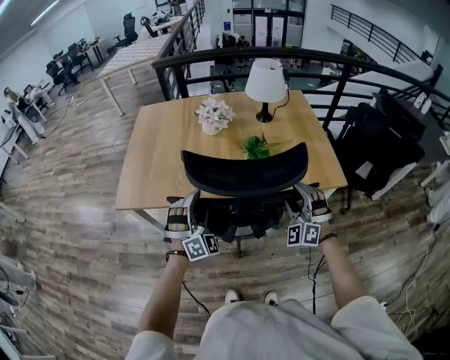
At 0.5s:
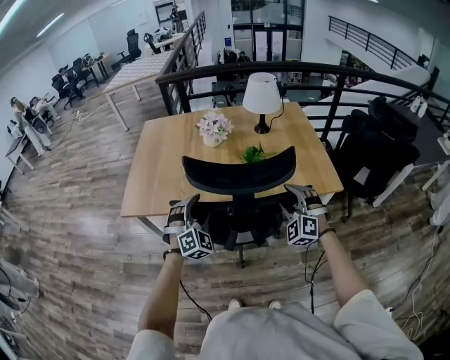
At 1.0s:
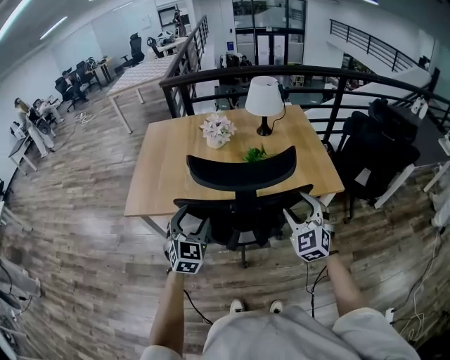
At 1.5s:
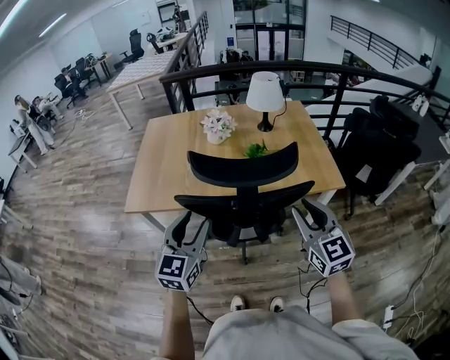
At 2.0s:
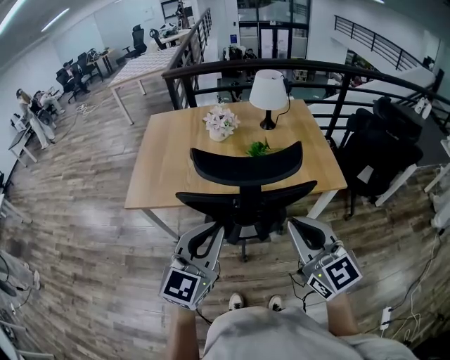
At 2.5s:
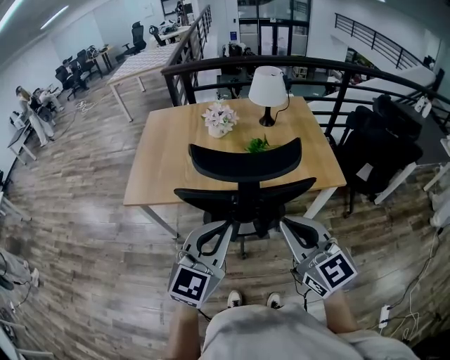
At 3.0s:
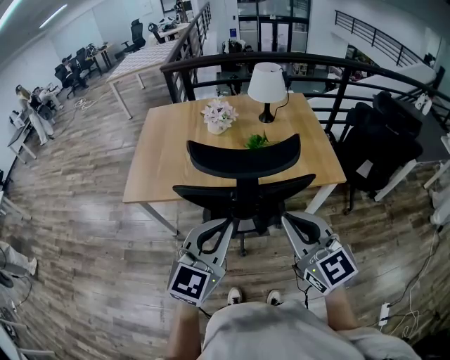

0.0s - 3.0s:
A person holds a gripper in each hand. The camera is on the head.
0.0s - 1.5s: The right gripper travels upward and backward by about 20 cm, twists some 60 degrees clockwise, seen from behind, and closes. The left gripper goes approximately 20 cm backward and upward, and twists some 60 degrees counterclockwise, seen from behind.
1.5s - 3.0s: The right gripper moves backward, to the left and upward, about 10 cm, and closes. Meanwhile the left gripper moves to the right and backward, approximately 10 cm, and closes its fingers.

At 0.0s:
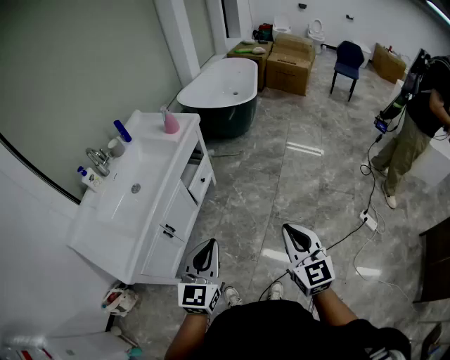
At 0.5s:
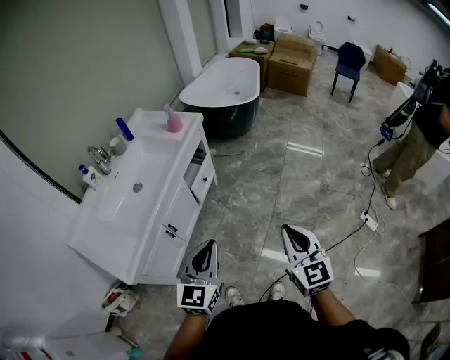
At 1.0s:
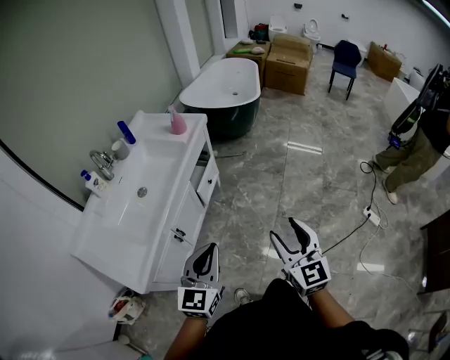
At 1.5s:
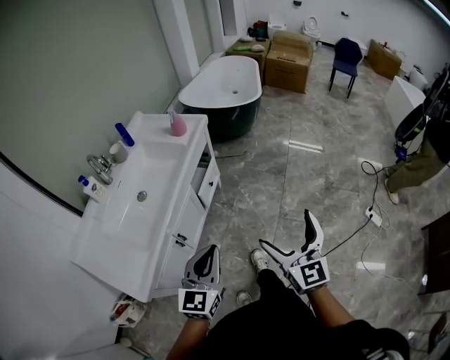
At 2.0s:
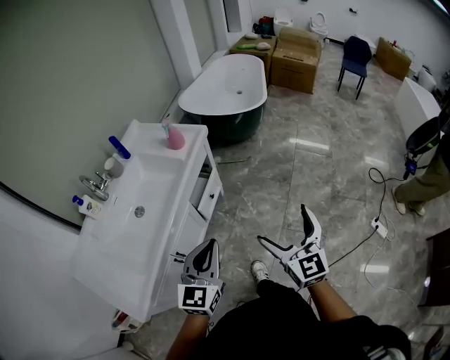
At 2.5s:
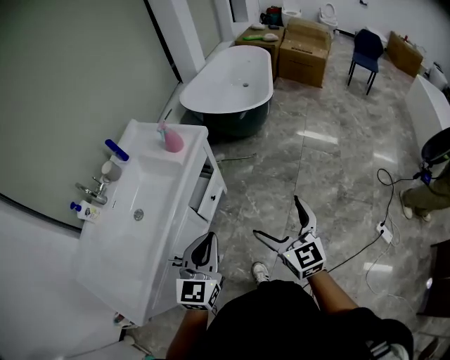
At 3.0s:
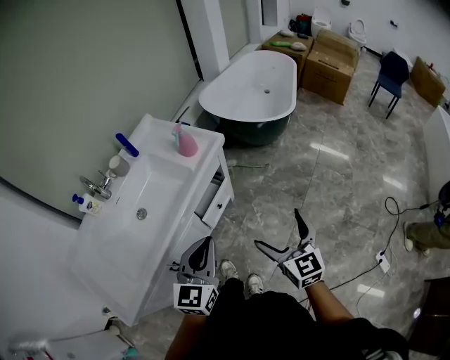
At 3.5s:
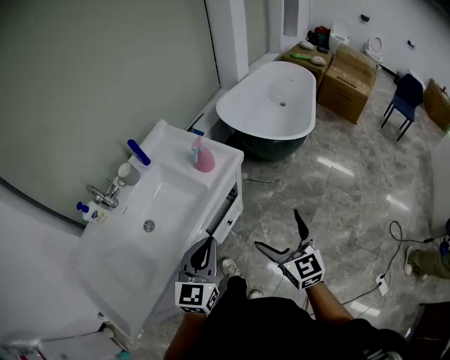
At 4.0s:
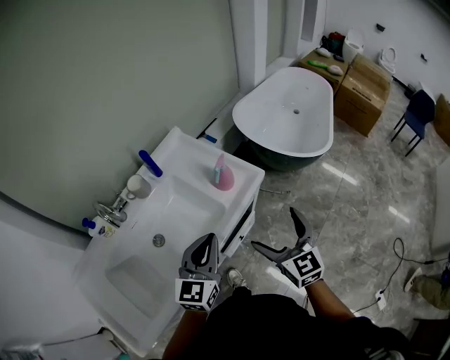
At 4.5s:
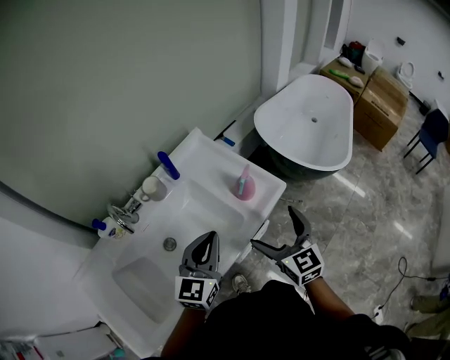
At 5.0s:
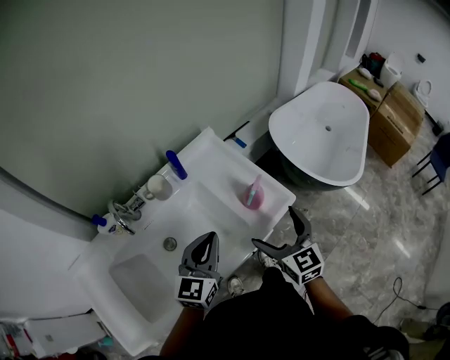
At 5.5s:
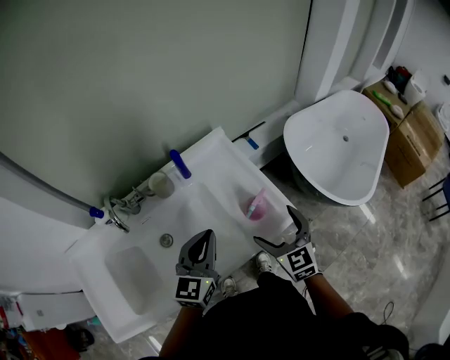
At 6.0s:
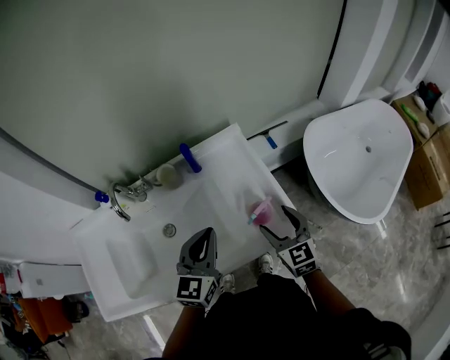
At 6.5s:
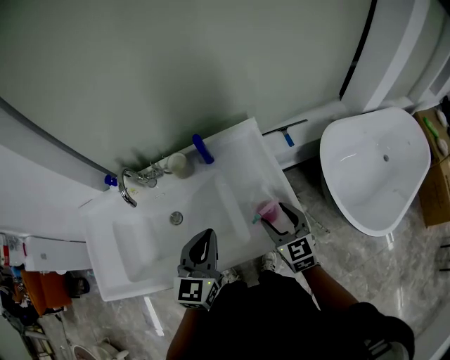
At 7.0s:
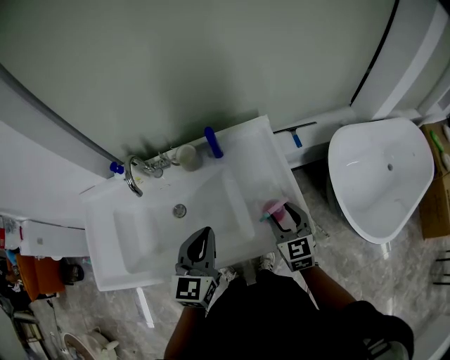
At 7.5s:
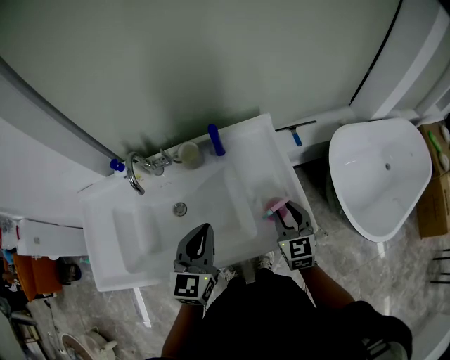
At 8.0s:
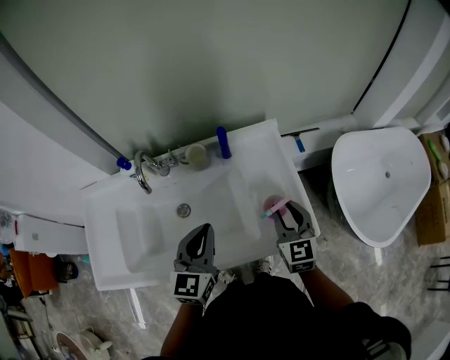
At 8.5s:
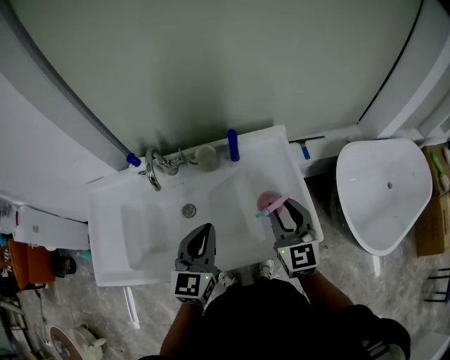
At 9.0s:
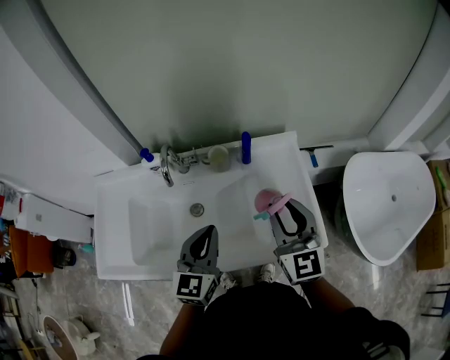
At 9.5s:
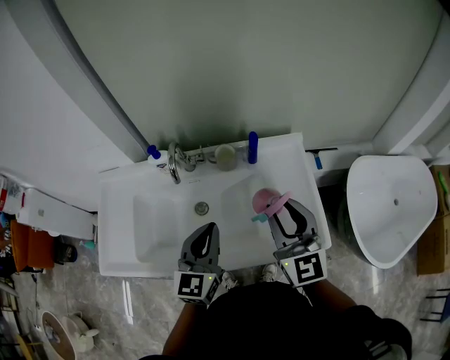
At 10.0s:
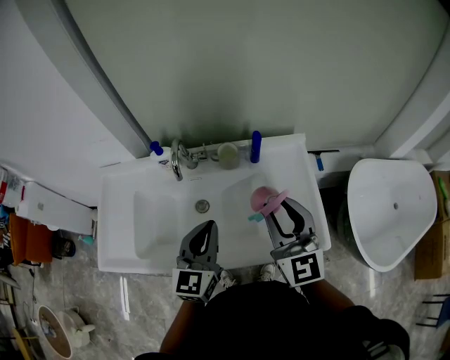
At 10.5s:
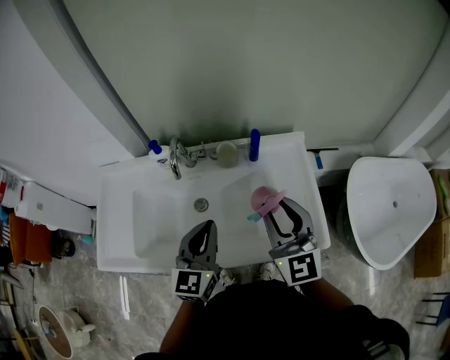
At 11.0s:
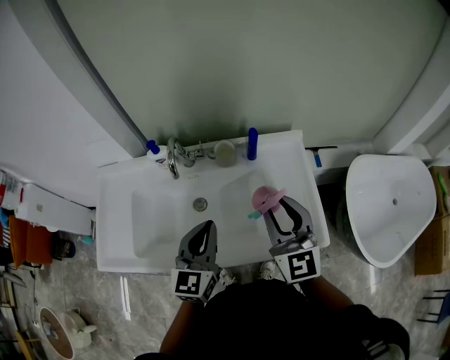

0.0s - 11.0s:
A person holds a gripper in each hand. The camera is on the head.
0.0s - 2.0s: The left gripper goes roughly 15 cm forward, while the right gripper heads forward and to the left, covering about 20 cm, and opens up.
2.0s - 3.5s: The two grippers go approximately 25 cm forward.
3.5s - 5.5s: The grippers both shift forward by about 30 cm. The right gripper turns by some 30 degrees. Meanwhile the left gripper turns by approximately 20 degrees.
5.5s - 7.5s: The left gripper changes its angle by about 20 degrees; the right gripper moves forward, roughly 10 cm, and closes up.
7.5s - 9.0s: The left gripper goes approximately 5 cm to the left. The right gripper shifts roughly 20 cm upward and to the left, and changes its angle by some 20 degrees.
9.0s - 11.0s: The grippers move only a little.

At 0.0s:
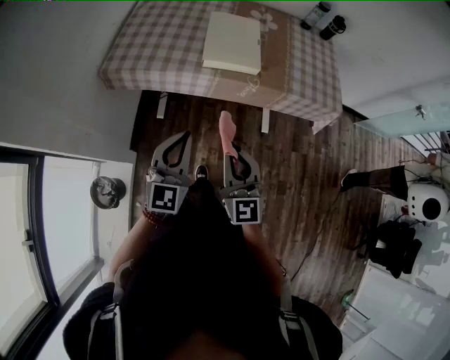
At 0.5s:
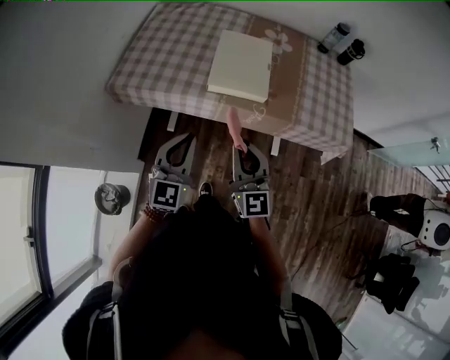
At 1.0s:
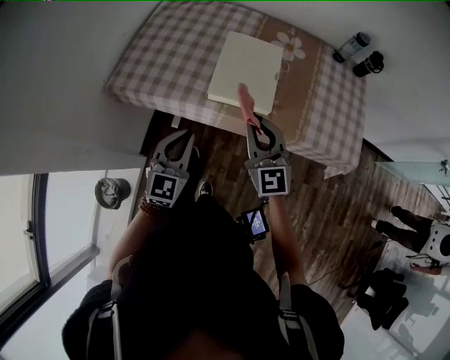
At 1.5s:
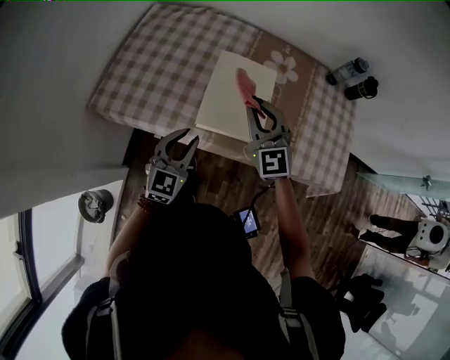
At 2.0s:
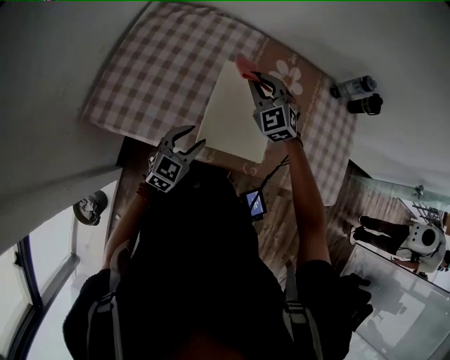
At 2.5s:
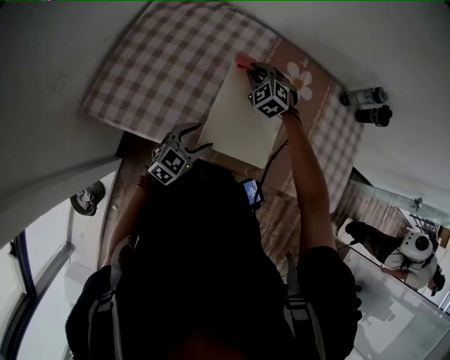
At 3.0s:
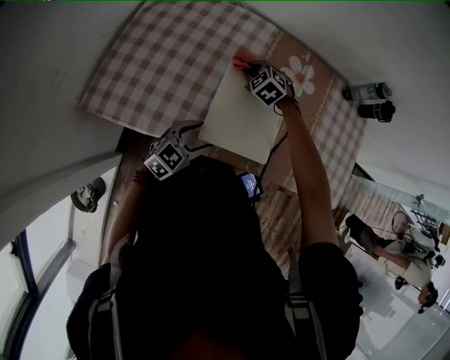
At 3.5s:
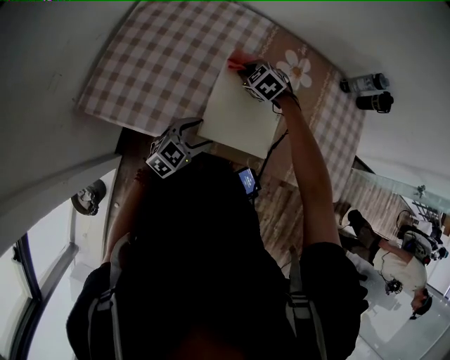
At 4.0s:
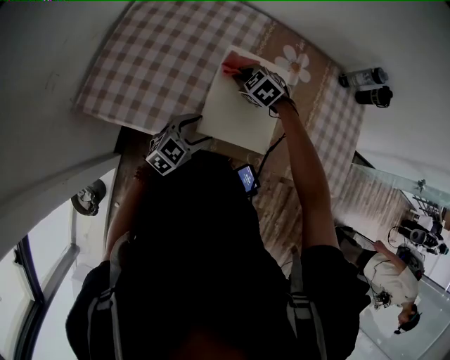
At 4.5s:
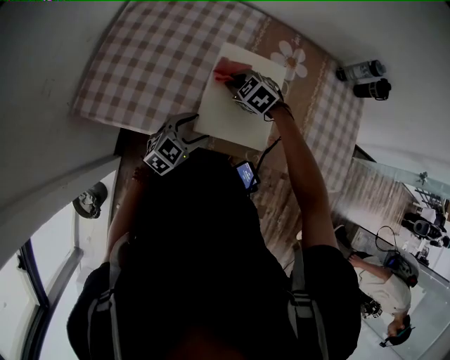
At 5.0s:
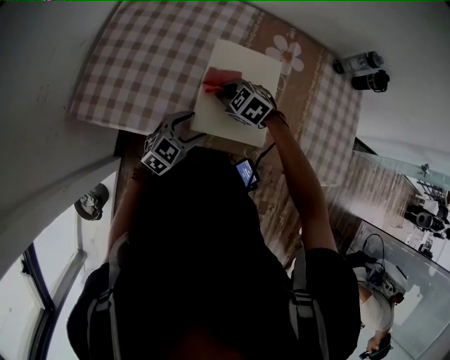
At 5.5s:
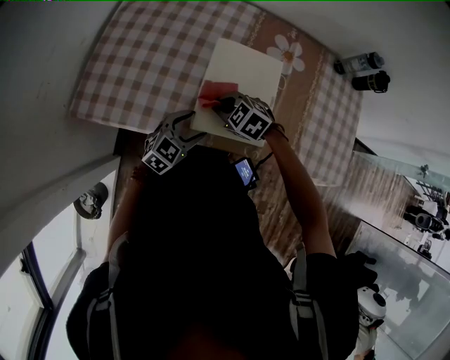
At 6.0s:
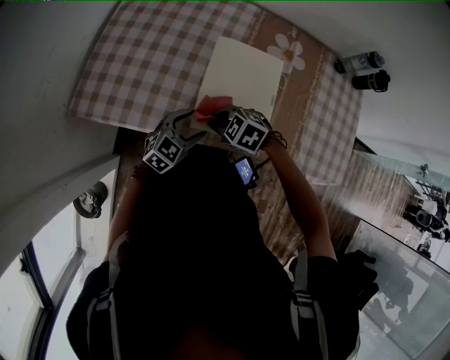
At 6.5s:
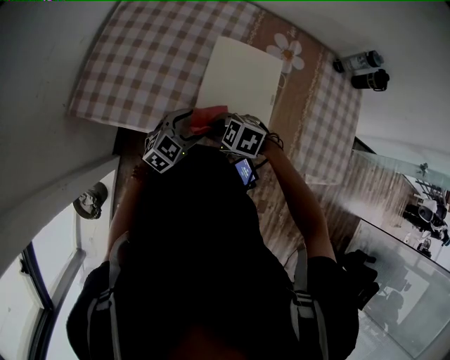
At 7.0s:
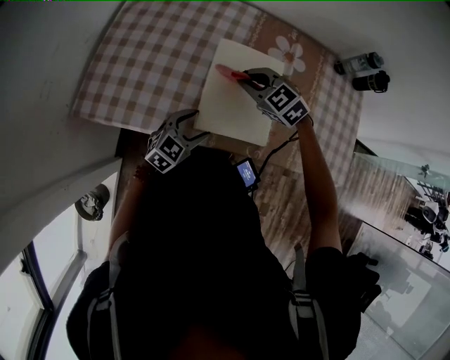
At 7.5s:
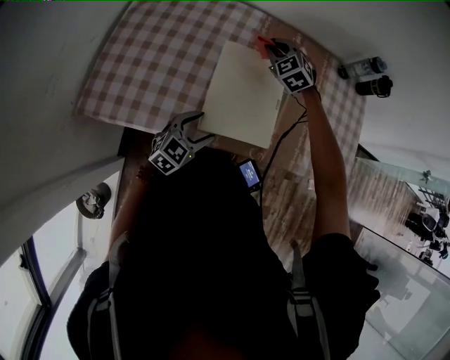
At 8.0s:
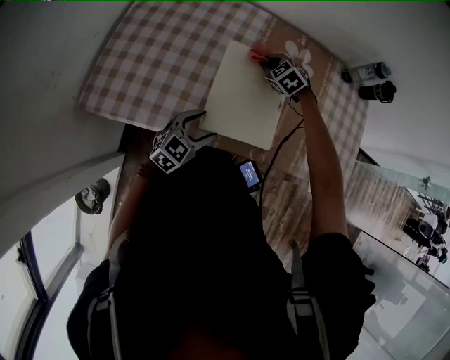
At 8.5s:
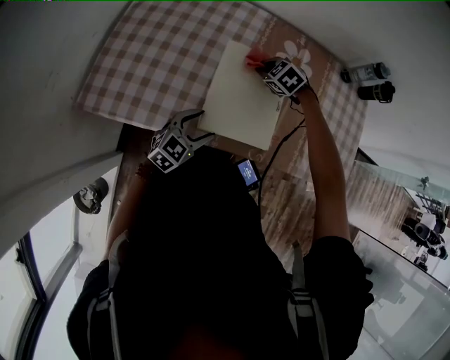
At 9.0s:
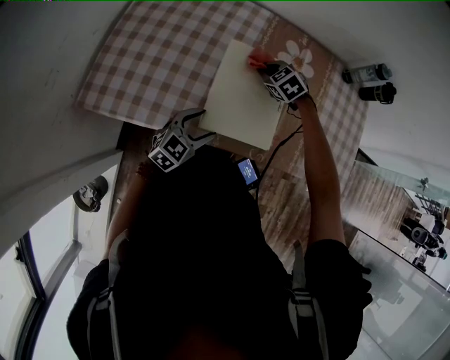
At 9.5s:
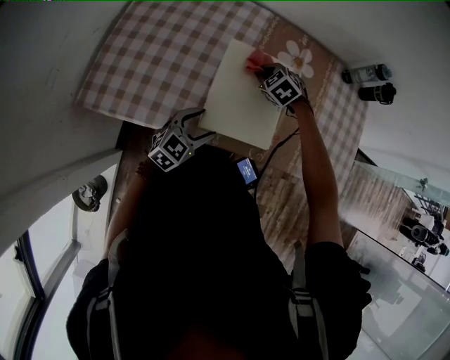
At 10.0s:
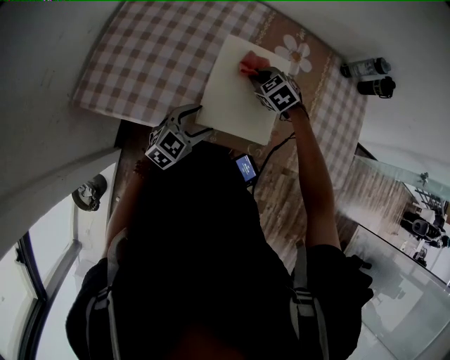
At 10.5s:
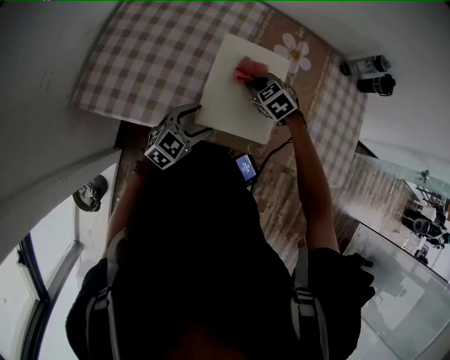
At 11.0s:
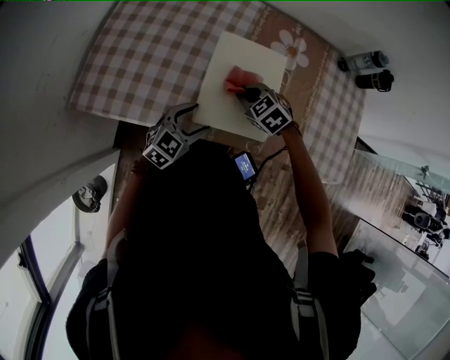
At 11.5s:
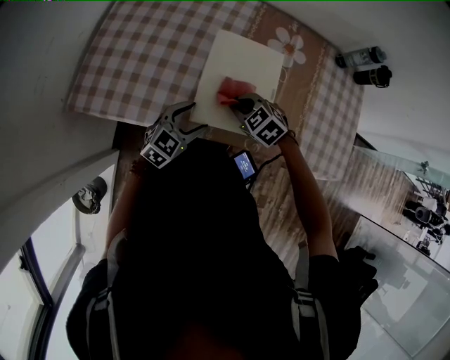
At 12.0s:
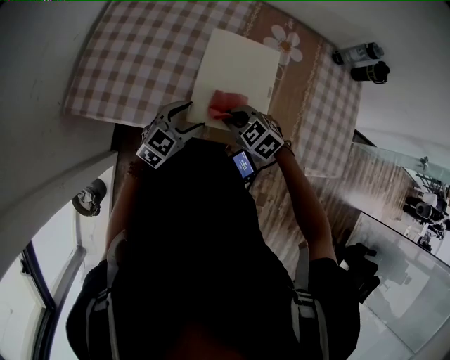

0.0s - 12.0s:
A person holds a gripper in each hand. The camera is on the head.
0.0s - 2.0s: The right gripper travels forward by roughly 50 cm, and turns by about 50 degrees. The left gripper moves forward and downward, about 30 cm, swivels about 20 degrees, and opens up.
2.0s - 4.0s: The right gripper moves downward, some 15 cm, and tips its fingers downward by some 30 degrees. The left gripper shifts about 5 cm downward.
4.0s - 6.0s: The right gripper changes place by about 20 cm.
6.0s - 8.0s: The right gripper goes upward and returns, some 10 cm each way, and turns by some 30 degrees.
8.0s - 10.0s: The right gripper moves backward, some 10 cm.
10.0s - 12.0s: The right gripper travels backward by approximately 15 cm.
